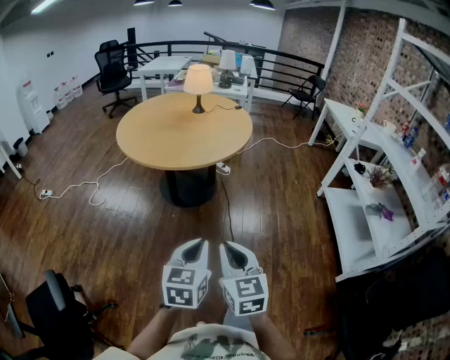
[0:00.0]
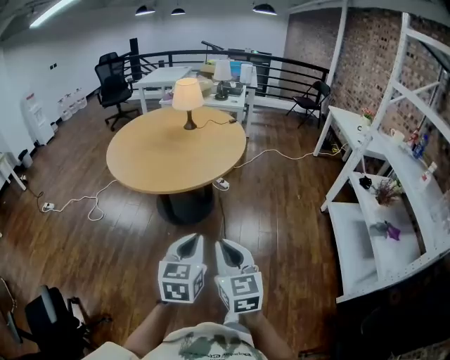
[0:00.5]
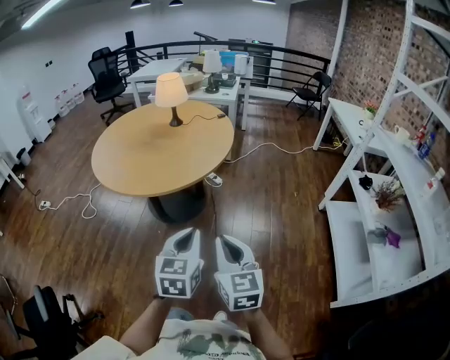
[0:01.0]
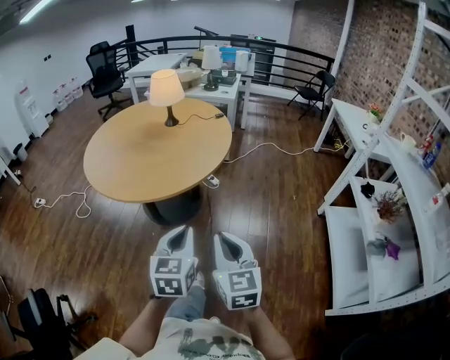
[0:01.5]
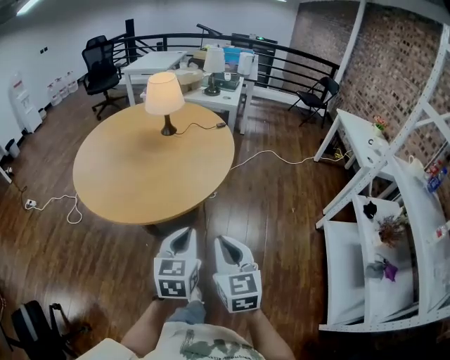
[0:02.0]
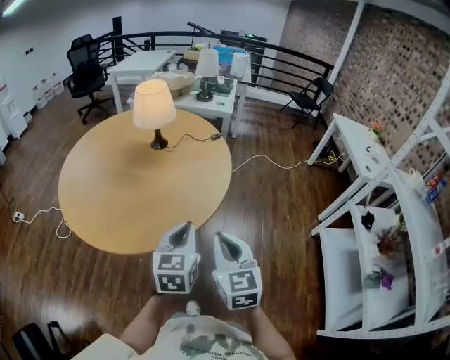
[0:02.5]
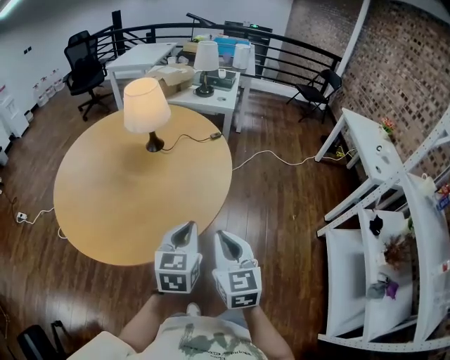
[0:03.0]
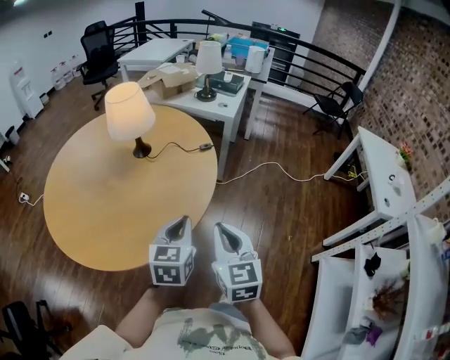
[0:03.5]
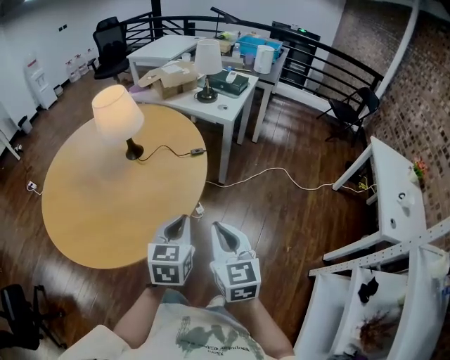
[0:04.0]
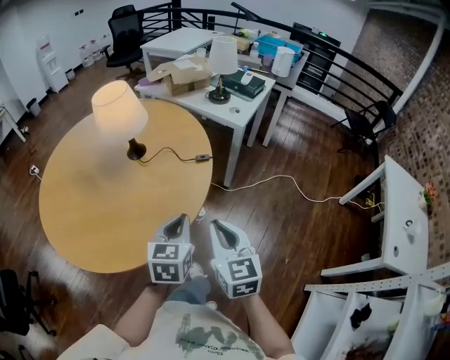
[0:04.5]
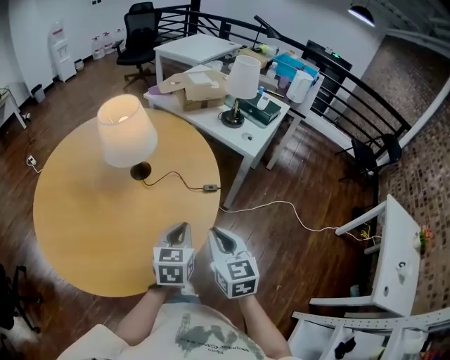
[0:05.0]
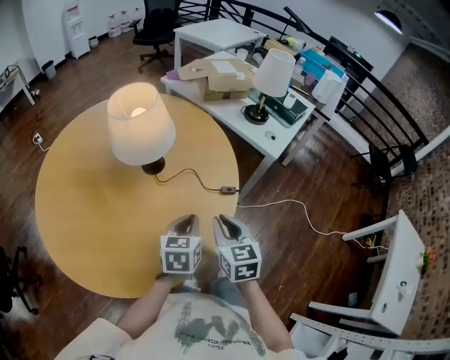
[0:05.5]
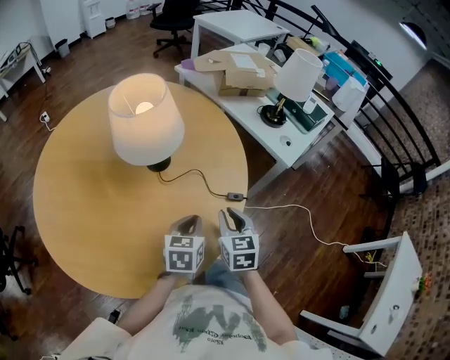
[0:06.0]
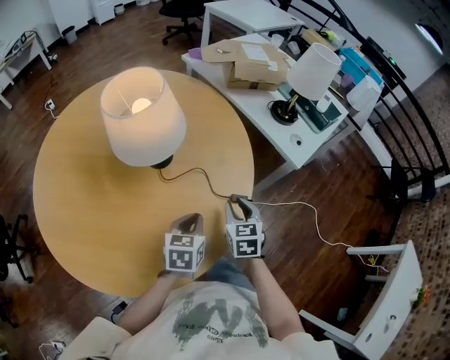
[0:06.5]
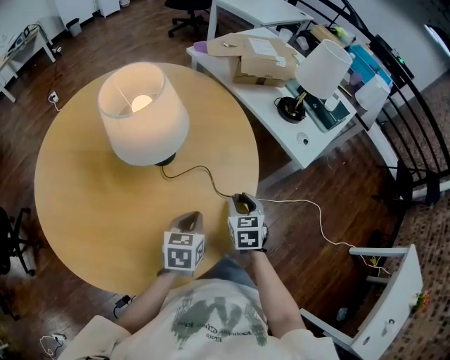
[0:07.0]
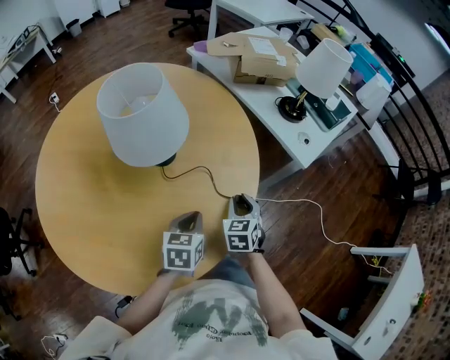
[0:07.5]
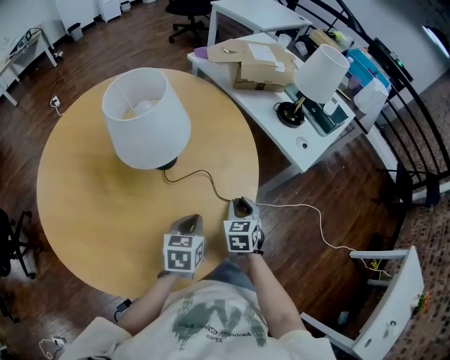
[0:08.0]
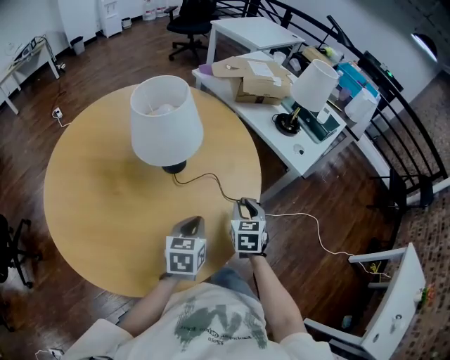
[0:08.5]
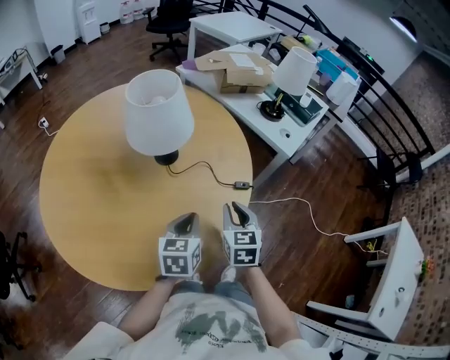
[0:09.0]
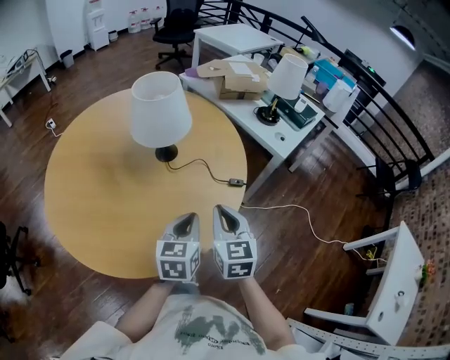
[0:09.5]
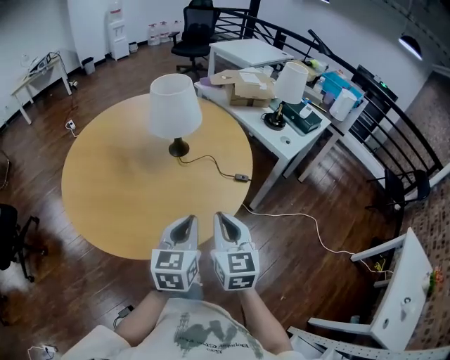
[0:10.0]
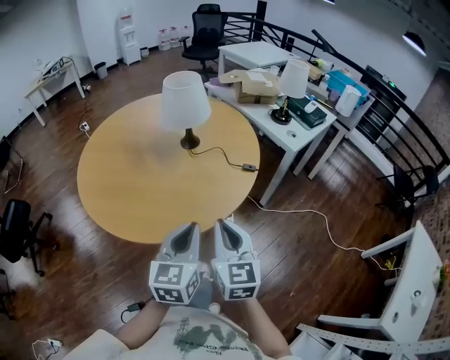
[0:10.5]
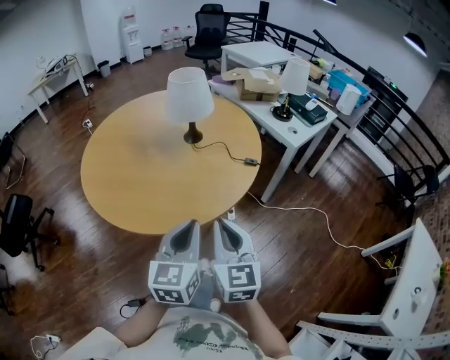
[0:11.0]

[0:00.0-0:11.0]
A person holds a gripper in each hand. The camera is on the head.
0:00.0 to 0:02.0: Both grippers are carried forward and to the right, about 50 cm.
0:02.0 to 0:03.5: Both grippers move forward and to the right, some 35 cm.
0:03.5 to 0:05.5: Both grippers move forward, approximately 30 cm. The right gripper changes its angle by roughly 30 degrees, while the left gripper changes its angle by approximately 30 degrees.
0:05.5 to 0:07.5: The right gripper travels downward and forward by roughly 20 cm, and swivels approximately 20 degrees. The left gripper travels downward and forward by approximately 10 cm.
0:07.5 to 0:09.0: The right gripper is displaced upward and backward by some 15 cm. Meanwhile the left gripper shifts some 10 cm upward and backward.
0:09.0 to 0:11.0: The grippers both shift backward and upward by roughly 30 cm. The right gripper rotates some 30 degrees. The left gripper turns by about 20 degrees.

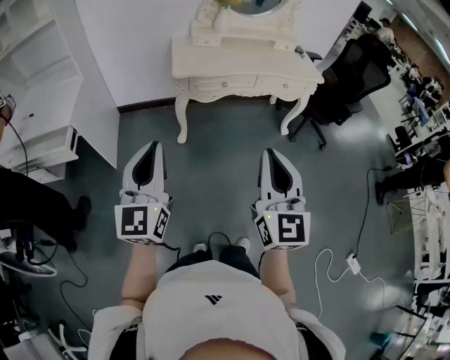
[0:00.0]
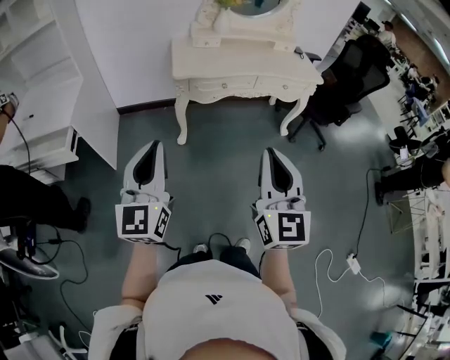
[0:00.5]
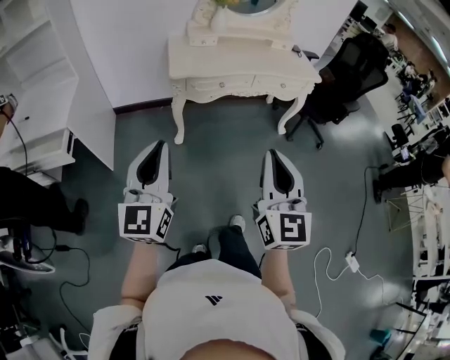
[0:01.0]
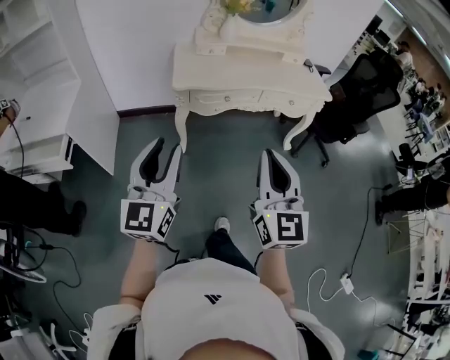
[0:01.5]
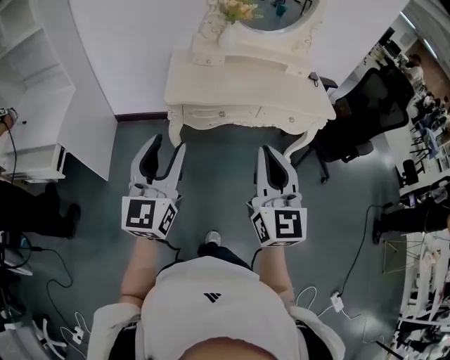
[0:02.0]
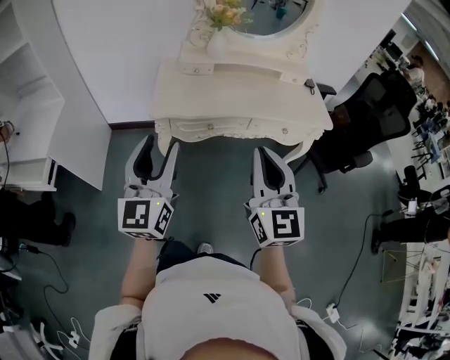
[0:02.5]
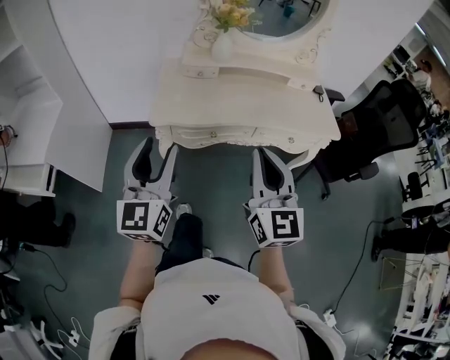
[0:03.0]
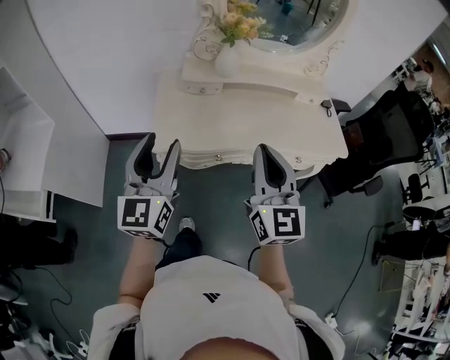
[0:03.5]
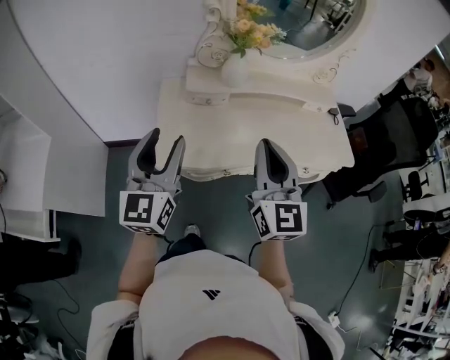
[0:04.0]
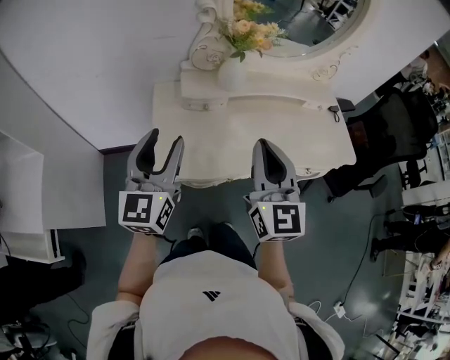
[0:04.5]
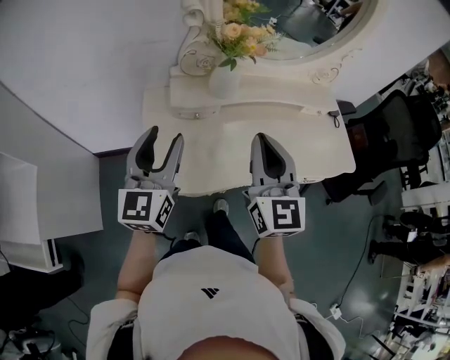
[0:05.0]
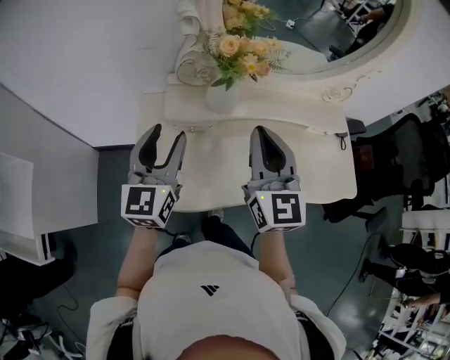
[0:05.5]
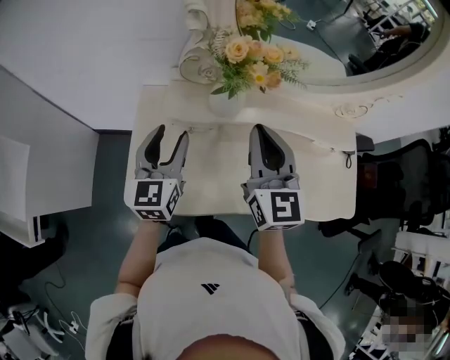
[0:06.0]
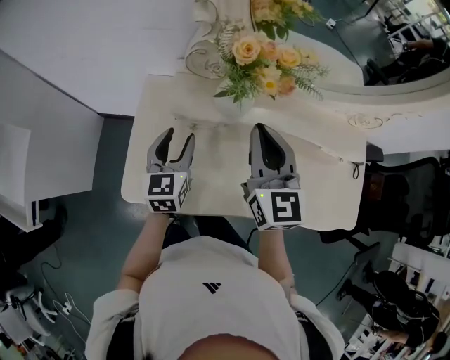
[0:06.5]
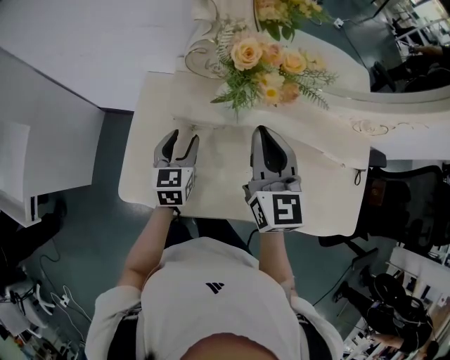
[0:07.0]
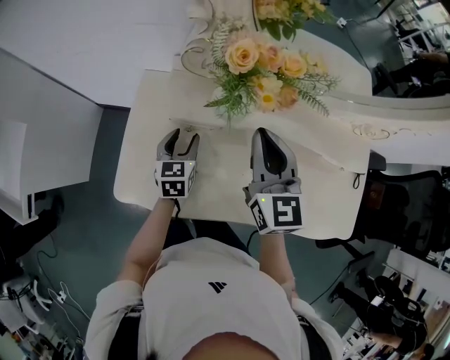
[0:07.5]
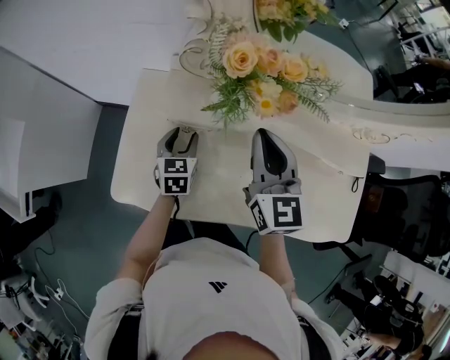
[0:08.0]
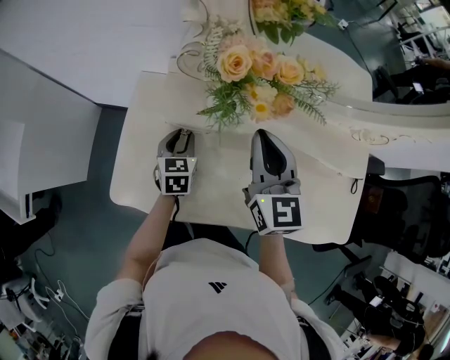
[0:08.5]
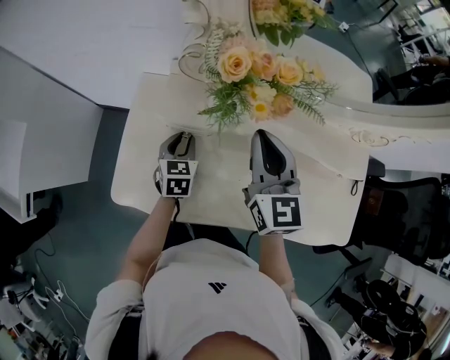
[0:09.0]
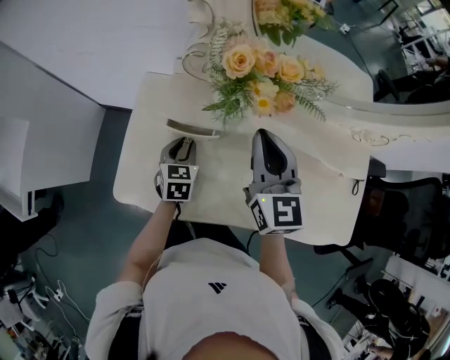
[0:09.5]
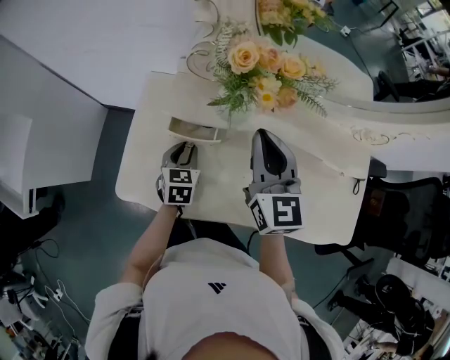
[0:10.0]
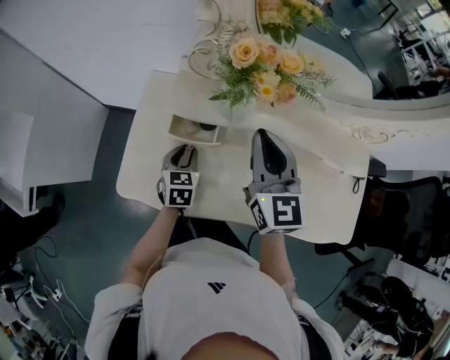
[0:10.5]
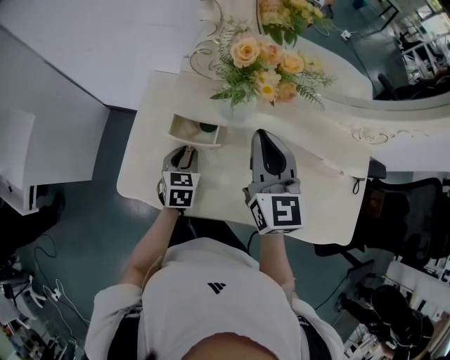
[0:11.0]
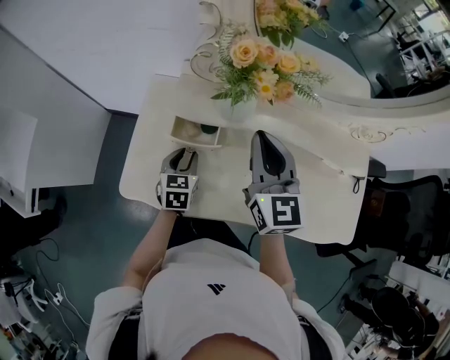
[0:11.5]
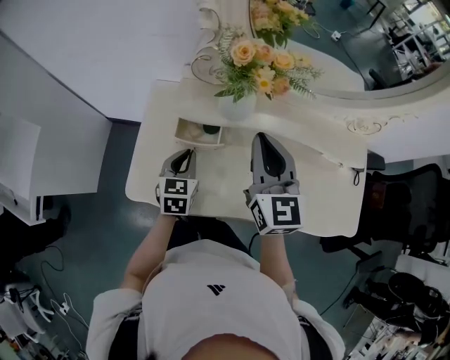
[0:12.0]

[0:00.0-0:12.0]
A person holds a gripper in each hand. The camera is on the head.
0:00.0 to 0:02.0: The left gripper travels forward and to the right by some 25 cm, and opens; the right gripper goes about 25 cm forward.
0:02.0 to 0:04.0: Both grippers travel together forward, roughly 35 cm.
0:04.0 to 0:06.0: The right gripper shifts some 25 cm forward, while the left gripper goes about 25 cm forward and downward.
0:06.0 to 0:08.0: The right gripper moves downward and forward, approximately 10 cm. The left gripper shifts approximately 20 cm downward, and turns by about 30 degrees.
0:08.0 to 0:10.0: The left gripper closes its fingers.
0:10.0 to 0:12.0: The left gripper is displaced upward by about 5 cm.

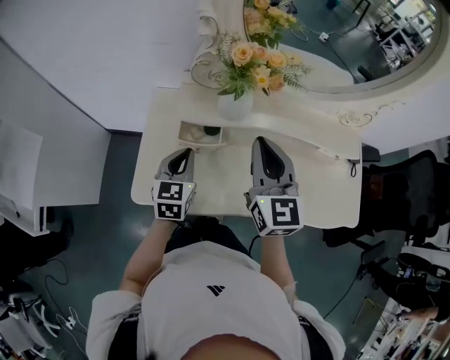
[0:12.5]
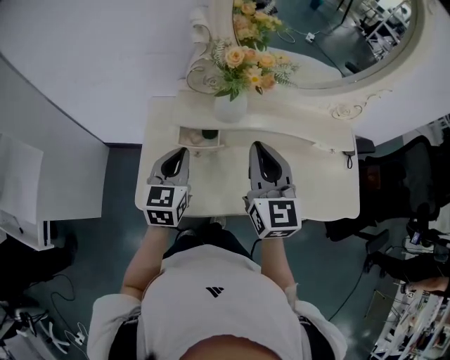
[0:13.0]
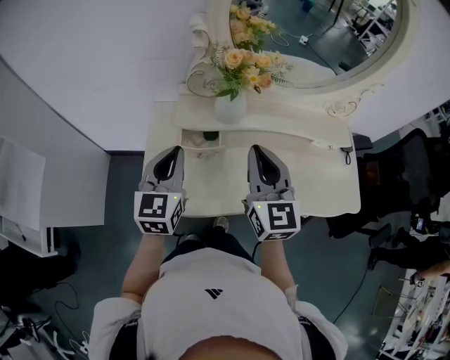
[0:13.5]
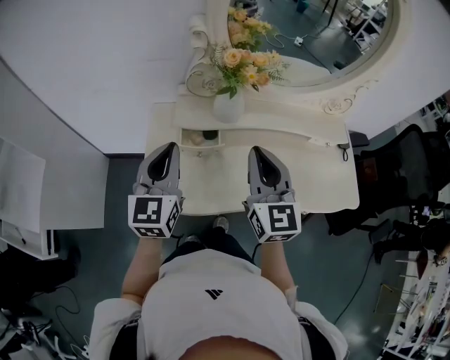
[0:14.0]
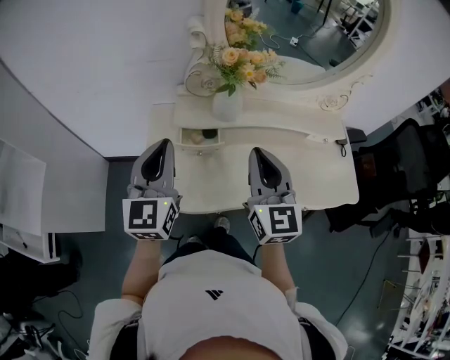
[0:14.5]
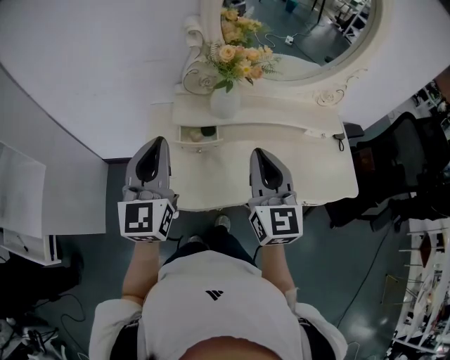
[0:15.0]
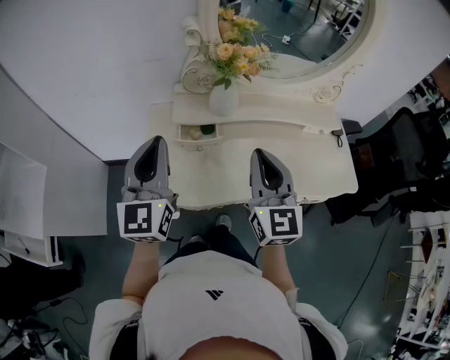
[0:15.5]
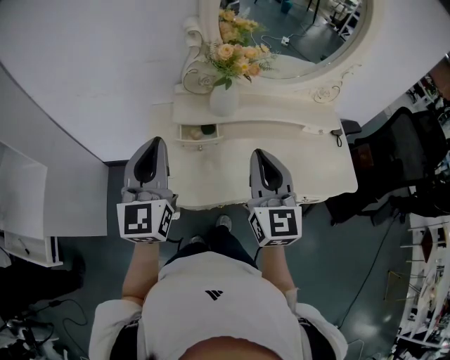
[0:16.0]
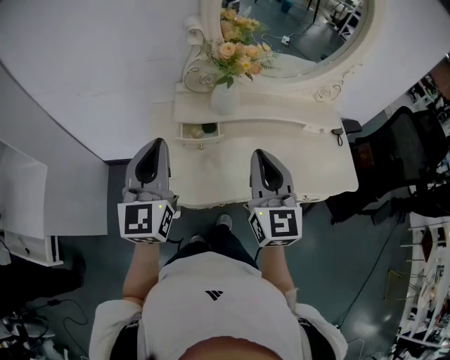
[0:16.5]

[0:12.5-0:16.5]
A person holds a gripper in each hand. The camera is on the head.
0:12.5 to 0:14.5: The right gripper shifts approximately 10 cm backward. Meanwhile the left gripper is displaced upward by some 20 cm, and swivels roughly 30 degrees.
0:14.5 to 0:16.5: There are only small adjustments of the grippers.
